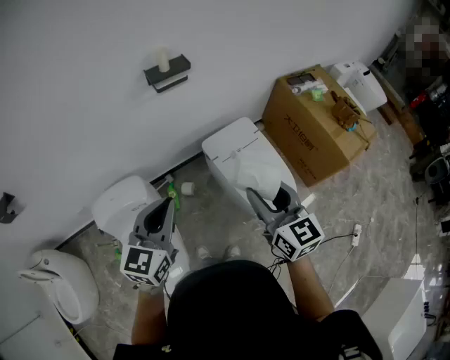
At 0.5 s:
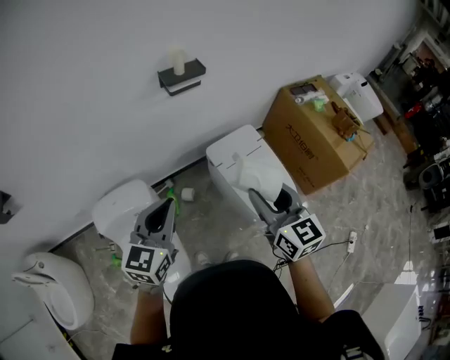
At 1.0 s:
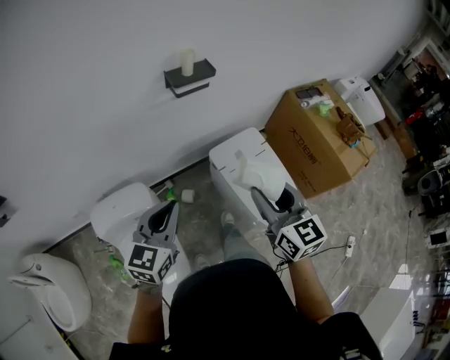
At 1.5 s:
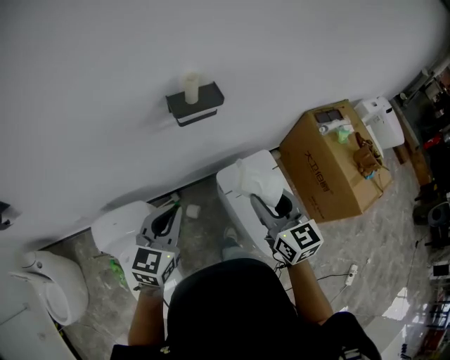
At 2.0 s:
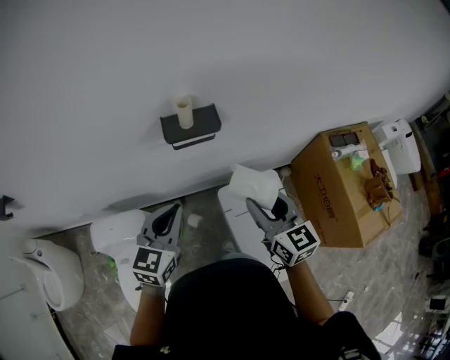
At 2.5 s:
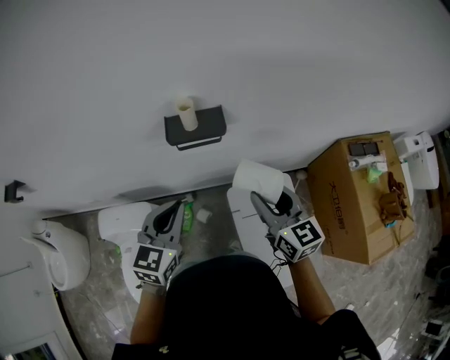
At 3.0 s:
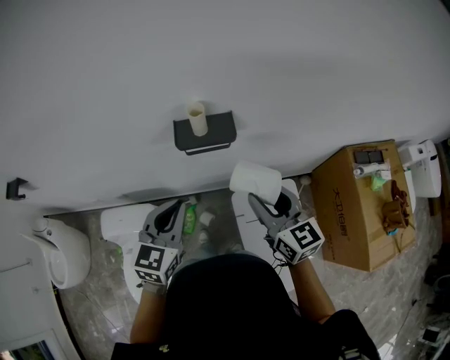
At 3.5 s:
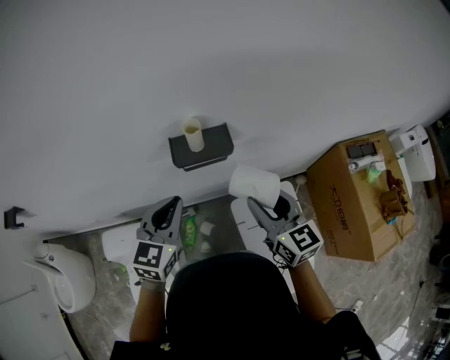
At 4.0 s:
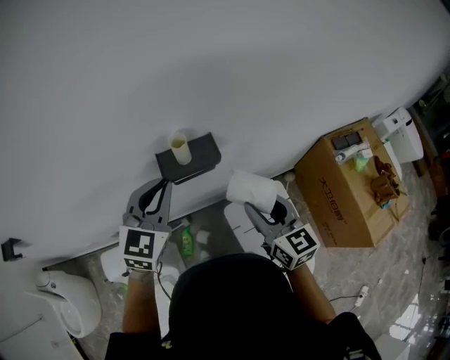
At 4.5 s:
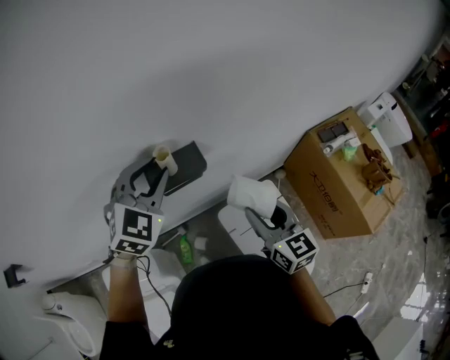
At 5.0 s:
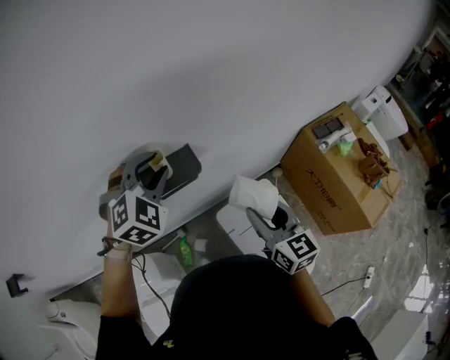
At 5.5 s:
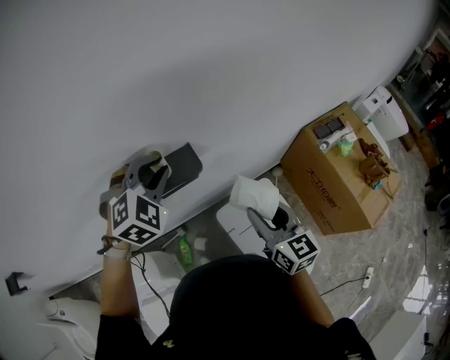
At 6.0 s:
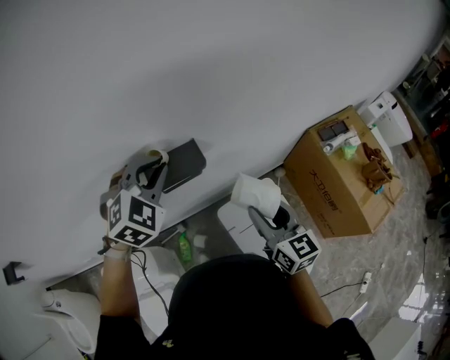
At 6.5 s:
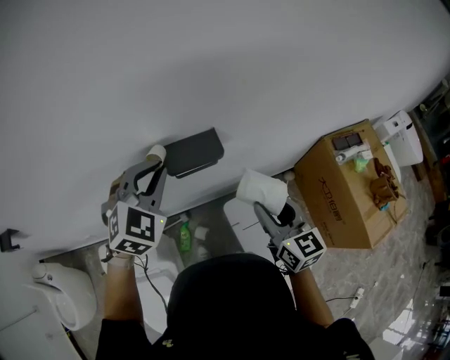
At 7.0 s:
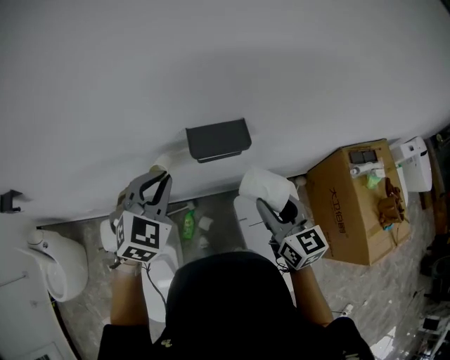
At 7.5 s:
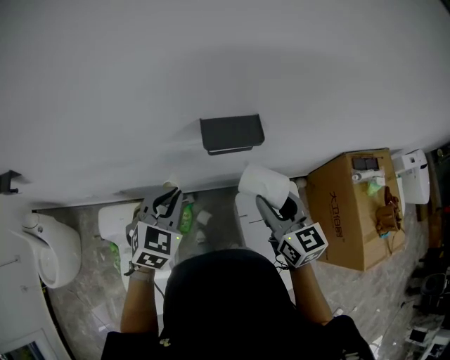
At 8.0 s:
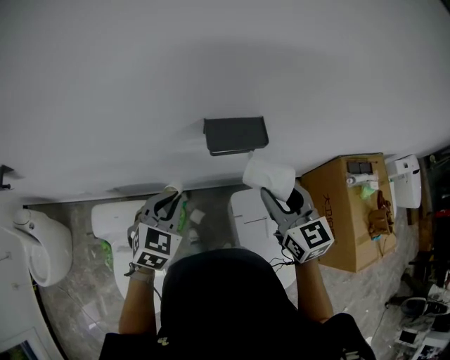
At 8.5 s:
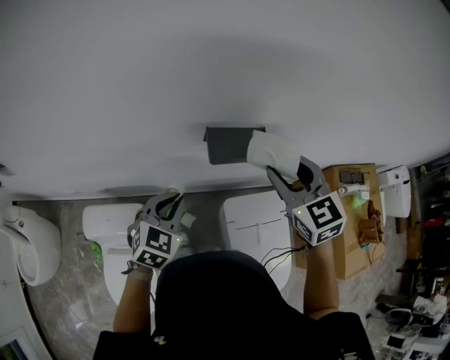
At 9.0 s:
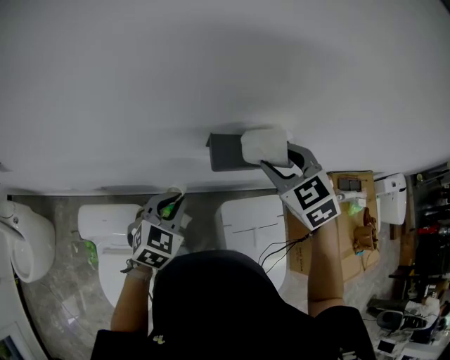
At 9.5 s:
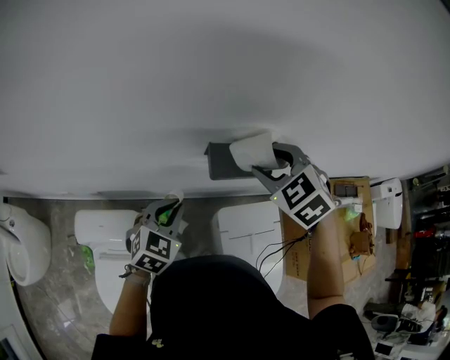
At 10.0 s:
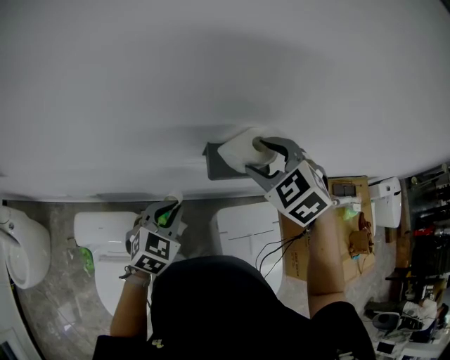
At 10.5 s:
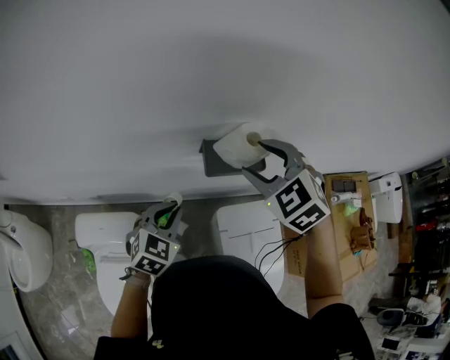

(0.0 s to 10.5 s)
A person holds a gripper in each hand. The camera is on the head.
0.0 s - 2.0 s: The grippers both shift forward by some 30 cm.
2.0 s - 4.0 s: The left gripper goes about 20 cm forward and upward; the right gripper moves forward, about 10 cm.
4.0 s - 6.5 s: The left gripper rotates approximately 20 degrees, and opens, then closes again.
6.5 s - 8.5 s: The left gripper travels downward, to the left and backward by some 20 cm, and swivels about 30 degrees; the right gripper goes some 15 cm to the left, forward and upward, and swivels some 40 degrees.
8.5 s - 10.5 s: The right gripper heads to the left, covering some 5 cm, and turns by roughly 30 degrees.

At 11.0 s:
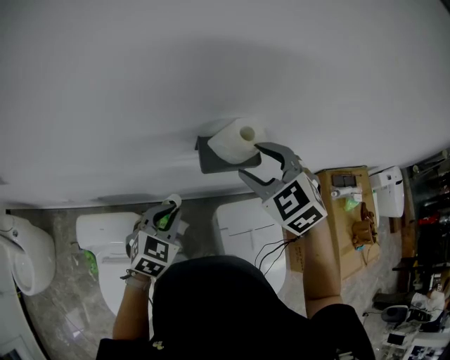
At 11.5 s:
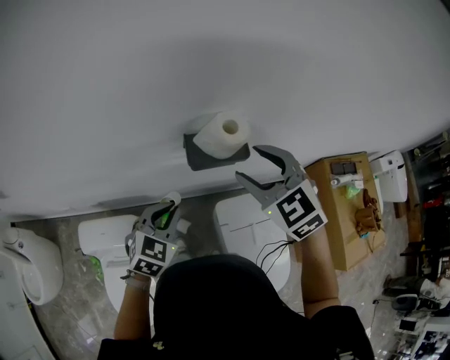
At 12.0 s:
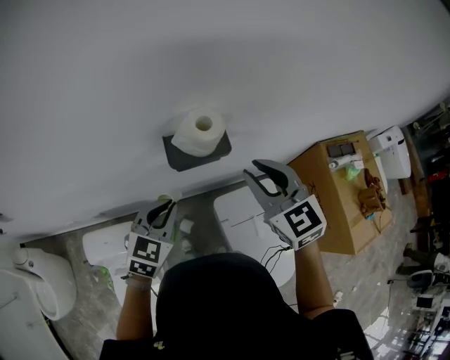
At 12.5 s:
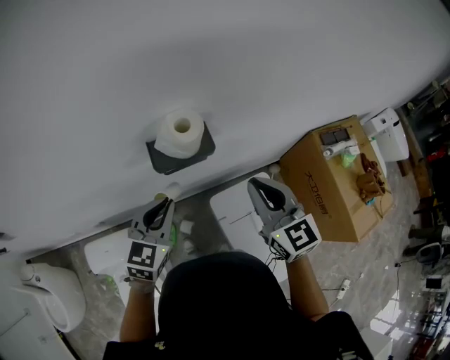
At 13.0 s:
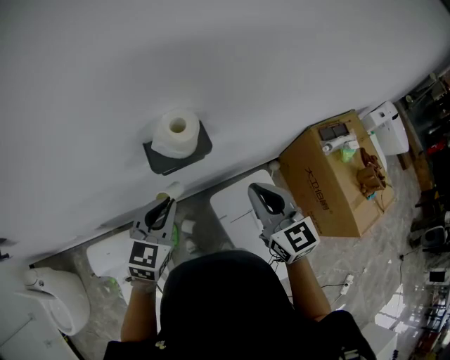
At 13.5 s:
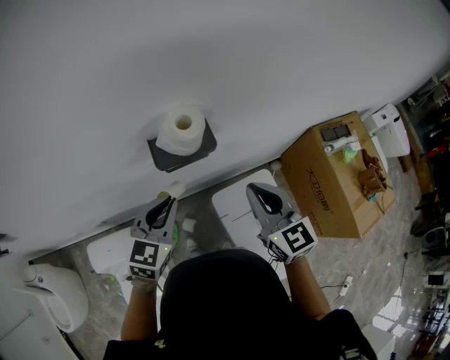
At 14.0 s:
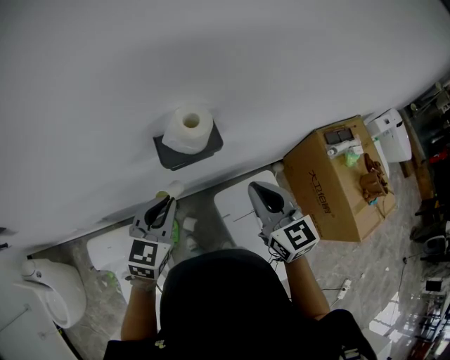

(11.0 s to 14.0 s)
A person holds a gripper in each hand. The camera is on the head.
11.0 s - 12.5 s: The right gripper is displaced to the right and backward by roughly 15 cm, turns by about 50 degrees, and closes up; the left gripper heads to the right and upward, covering approximately 10 cm.
12.5 s - 14.0 s: The grippers stay close to where they were, moving slightly.

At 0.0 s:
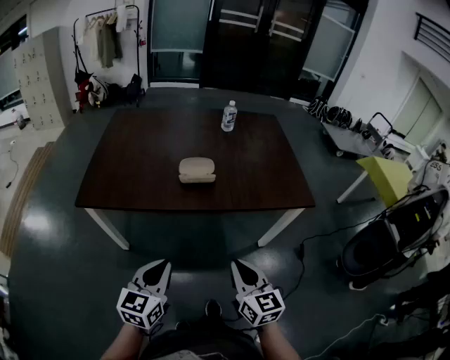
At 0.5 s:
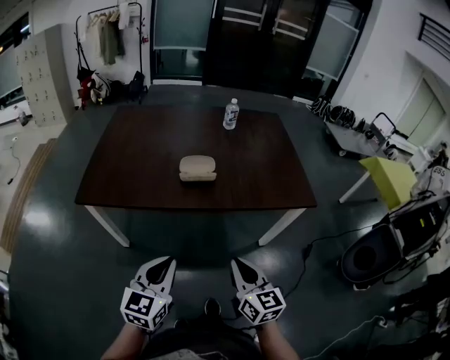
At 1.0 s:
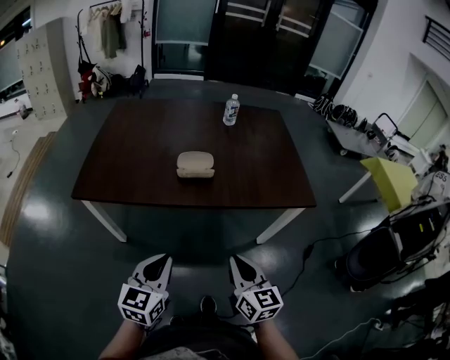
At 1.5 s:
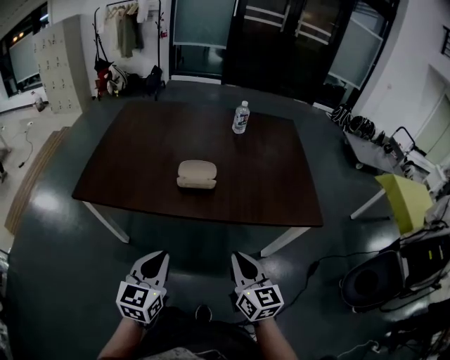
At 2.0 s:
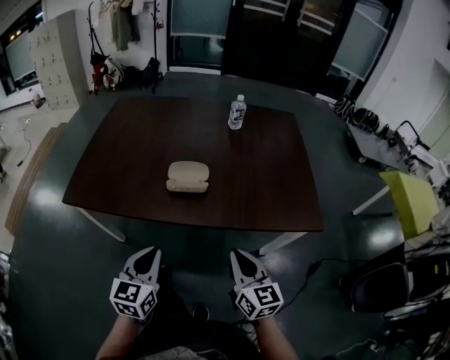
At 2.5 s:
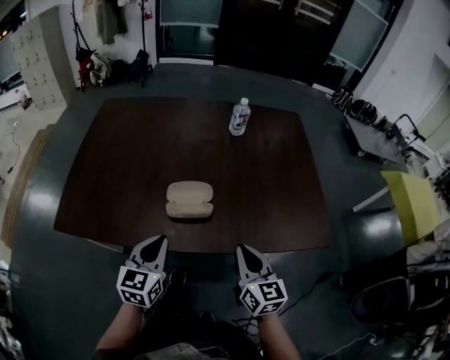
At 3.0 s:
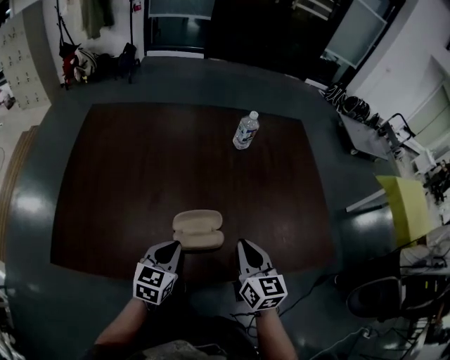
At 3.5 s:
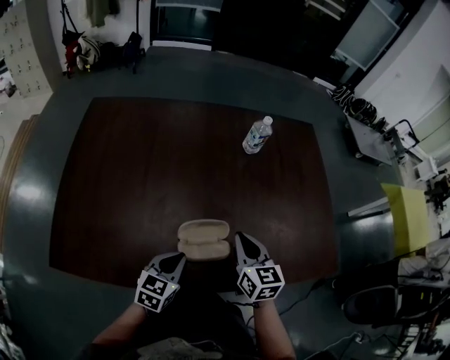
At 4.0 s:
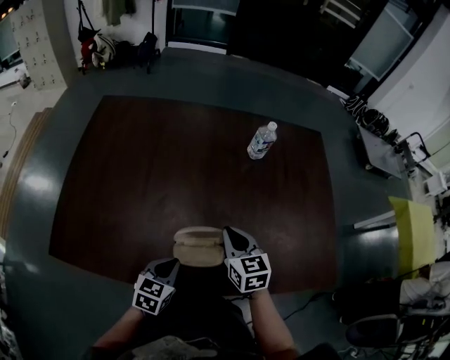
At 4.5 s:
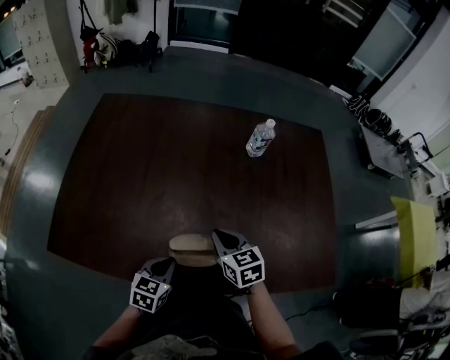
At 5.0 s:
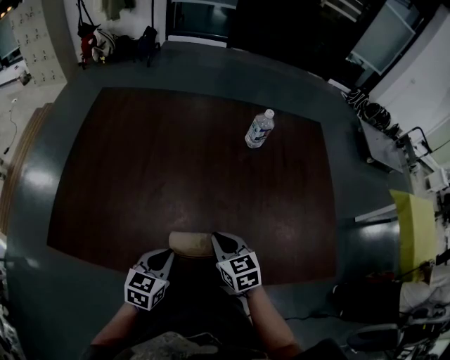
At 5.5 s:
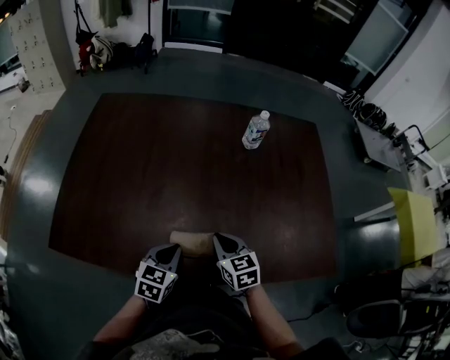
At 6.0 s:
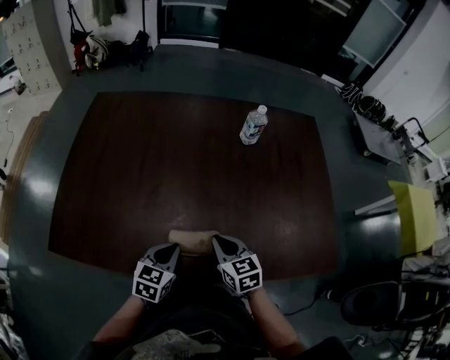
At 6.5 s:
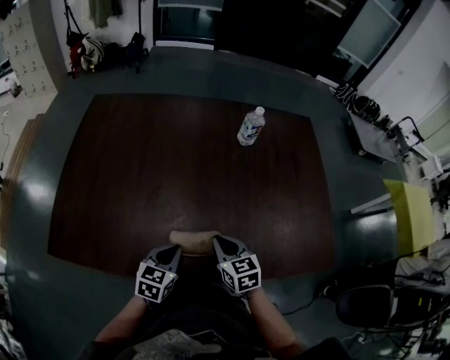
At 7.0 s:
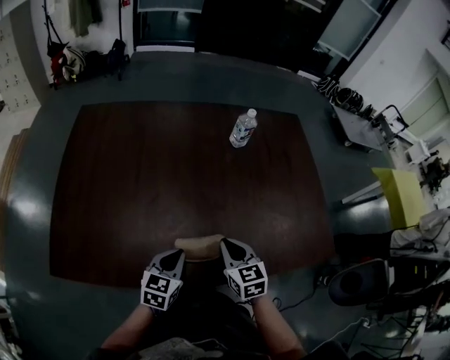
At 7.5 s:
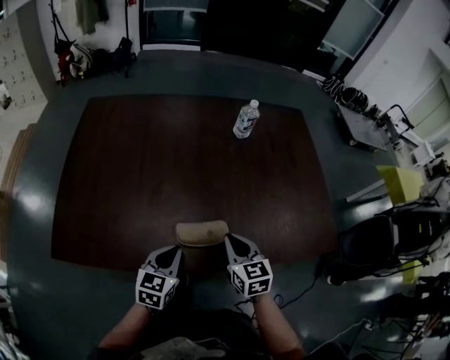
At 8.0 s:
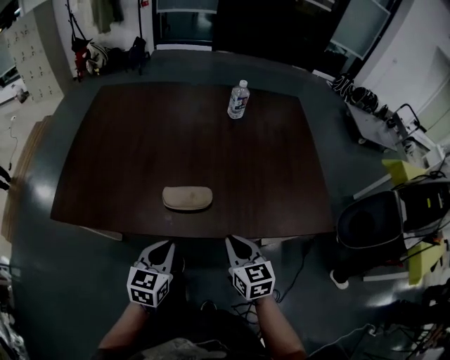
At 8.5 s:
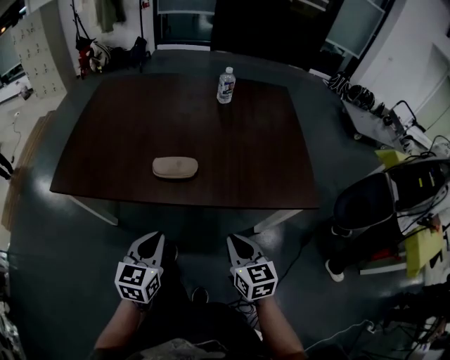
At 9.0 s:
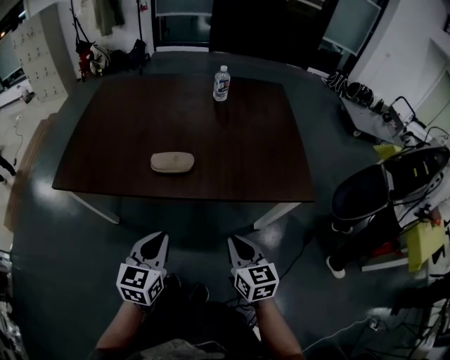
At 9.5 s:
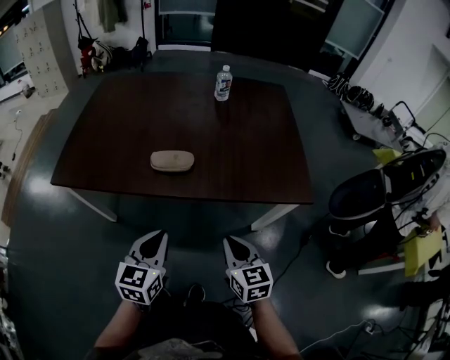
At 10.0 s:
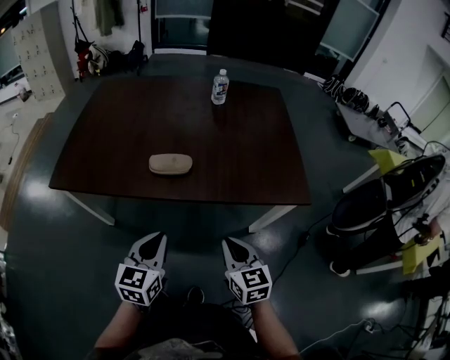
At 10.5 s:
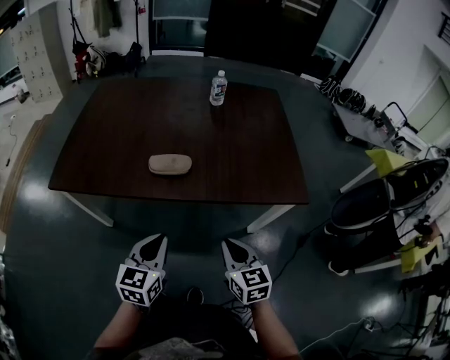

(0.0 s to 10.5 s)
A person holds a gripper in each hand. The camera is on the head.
0.0 s - 2.0 s: Both grippers move forward and to the right, some 15 cm.
2.0 s - 4.0 s: The right gripper shifts about 35 cm forward. The left gripper travels forward and downward by some 30 cm, and swivels roughly 30 degrees.
4.0 s - 6.5 s: The right gripper shifts approximately 5 cm backward.
6.5 s - 8.5 s: The left gripper goes approximately 25 cm backward. Meanwhile the right gripper heads backward and to the right, covering approximately 30 cm.
8.5 s - 10.5 s: The grippers make only small movements.

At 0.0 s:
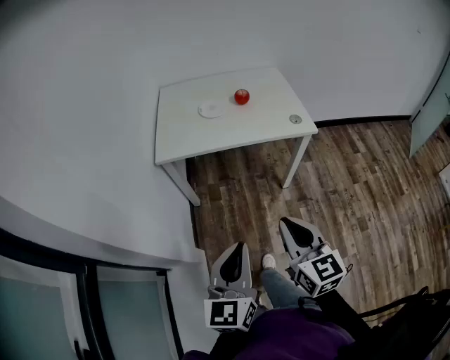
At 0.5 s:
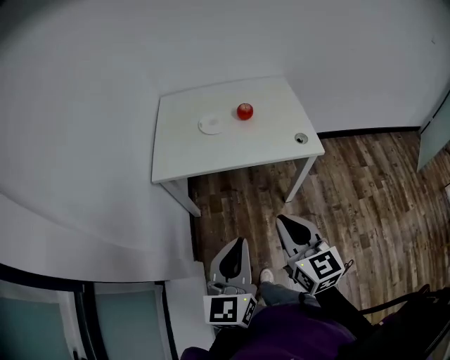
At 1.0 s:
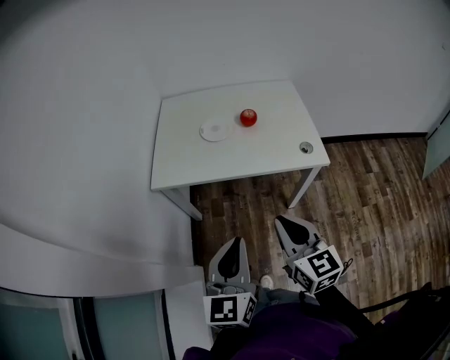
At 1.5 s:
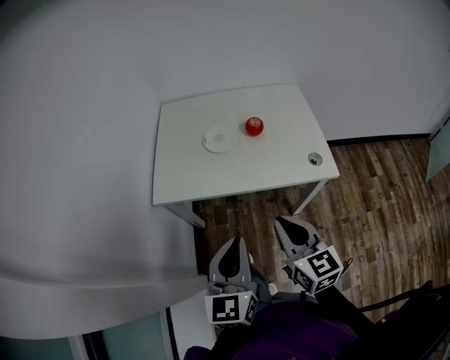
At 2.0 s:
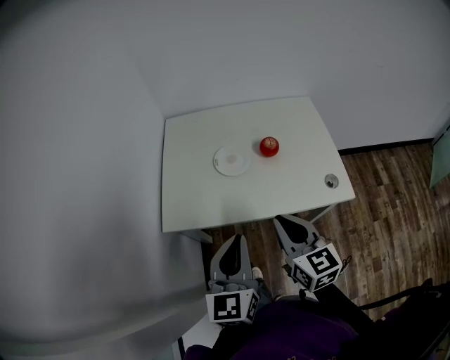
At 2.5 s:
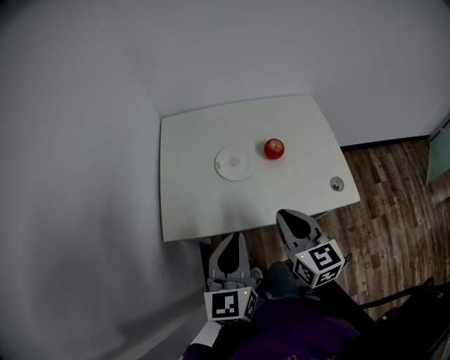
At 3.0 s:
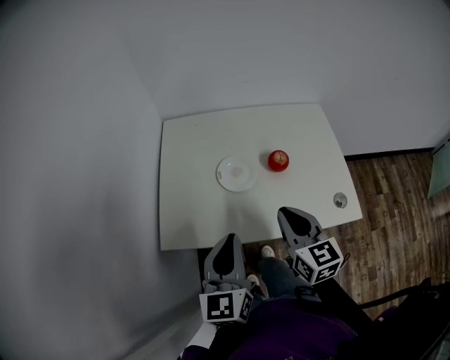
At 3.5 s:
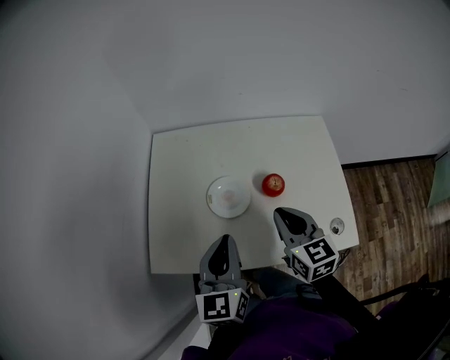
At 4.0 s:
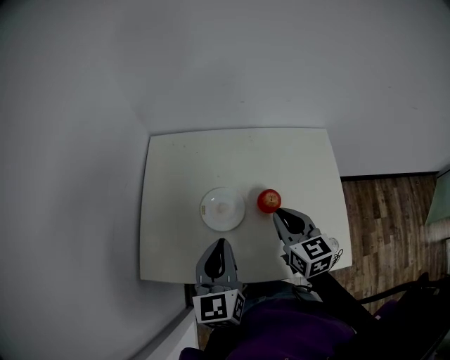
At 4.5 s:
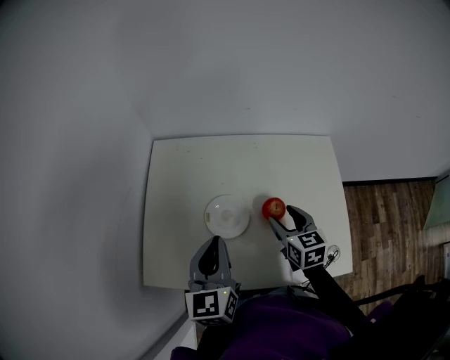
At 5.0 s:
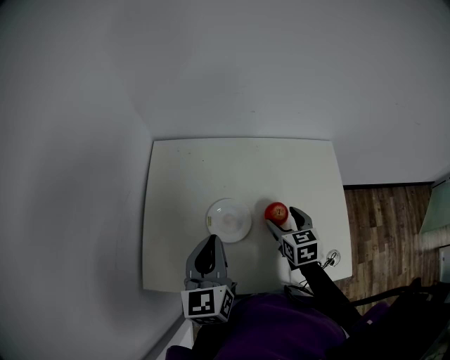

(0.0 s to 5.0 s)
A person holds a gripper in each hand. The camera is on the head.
0.0 s - 2.5 s: The pair of grippers is taken forward, about 40 cm.
2.5 s - 5.0 s: The left gripper heads forward, covering roughly 25 cm; the right gripper is displaced forward, downward and to the right by some 30 cm, turns by some 20 degrees, and opens.
